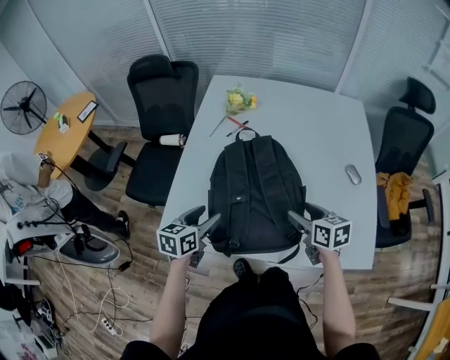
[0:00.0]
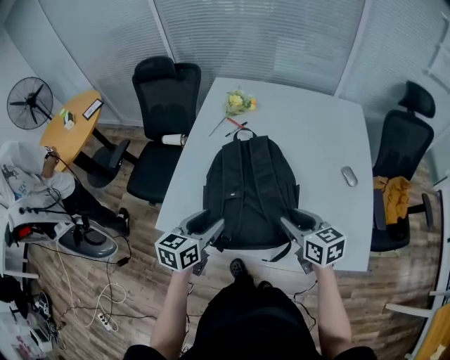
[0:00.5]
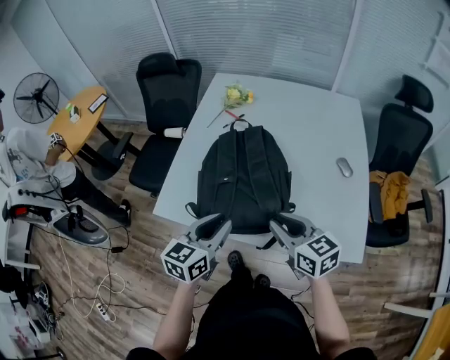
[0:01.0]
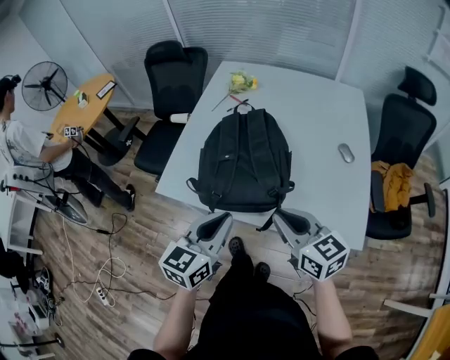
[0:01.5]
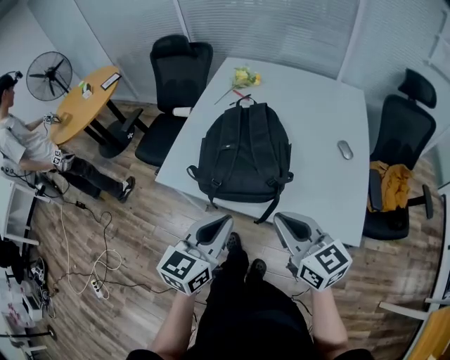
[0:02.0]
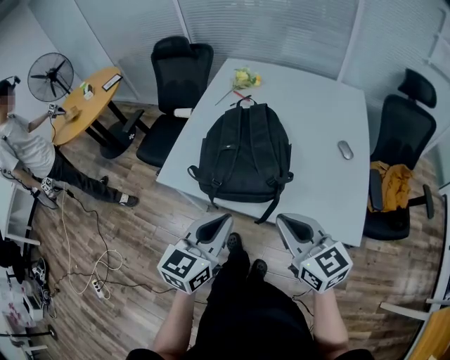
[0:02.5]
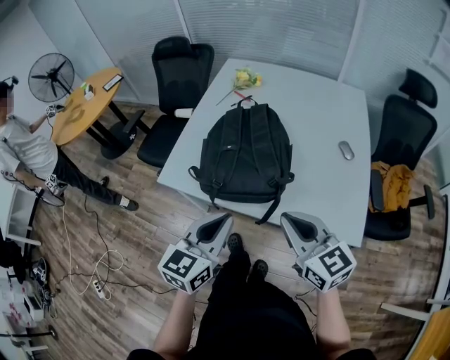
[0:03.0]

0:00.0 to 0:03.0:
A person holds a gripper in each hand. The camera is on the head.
0:00.0 to 0:01.5: The left gripper heads backward, upward and to the right, covering approximately 25 cm, swivels roughly 20 degrees, and closes its fingers. The right gripper moves backward and upward, some 20 cm, rotates roughly 30 degrees, and closes up.
0:01.5 to 0:03.0: The right gripper shifts about 5 cm backward.

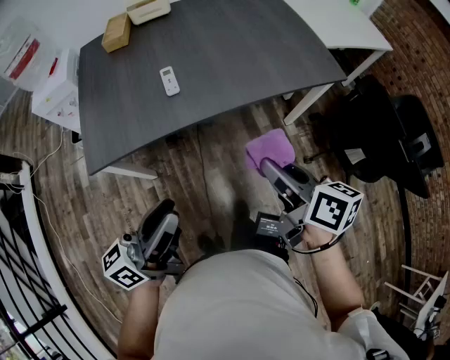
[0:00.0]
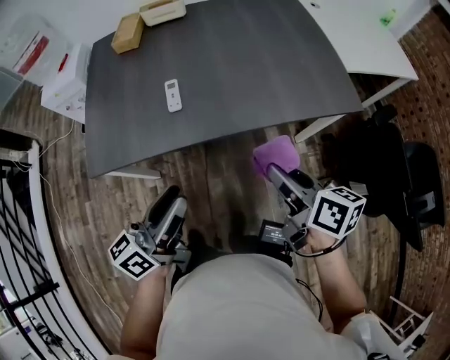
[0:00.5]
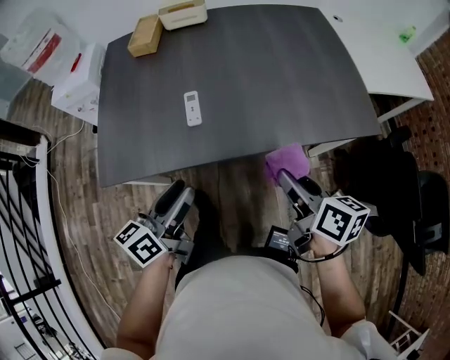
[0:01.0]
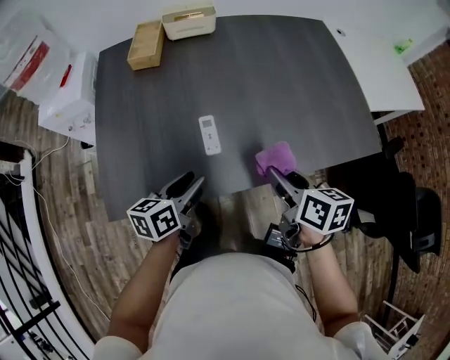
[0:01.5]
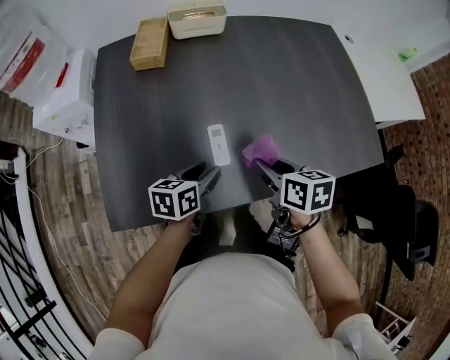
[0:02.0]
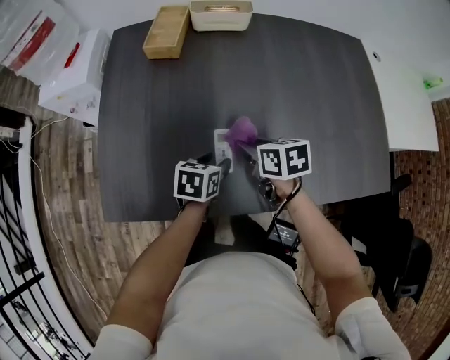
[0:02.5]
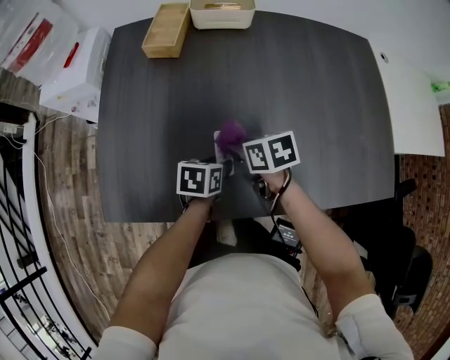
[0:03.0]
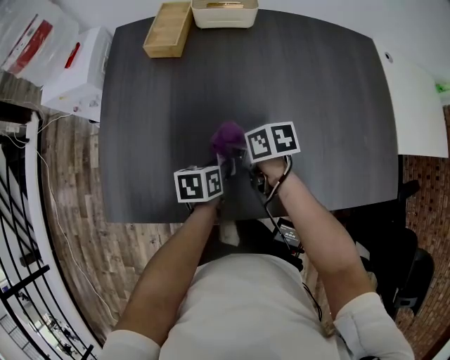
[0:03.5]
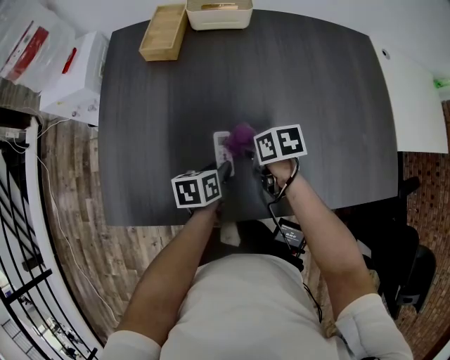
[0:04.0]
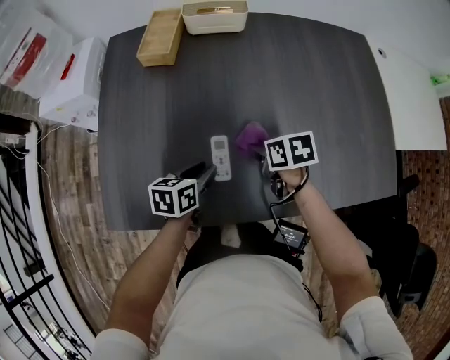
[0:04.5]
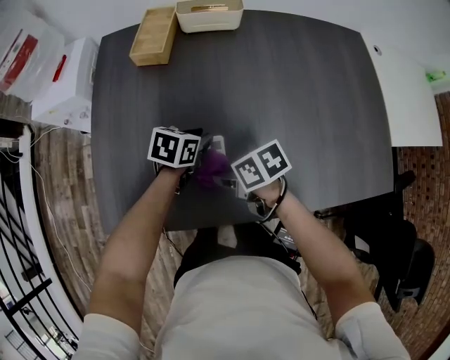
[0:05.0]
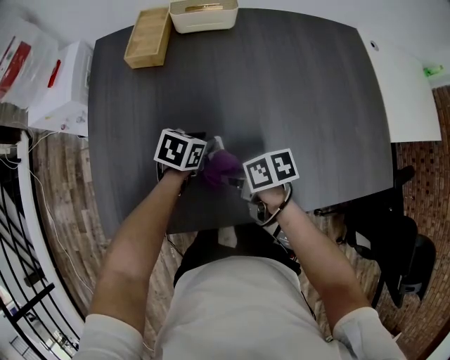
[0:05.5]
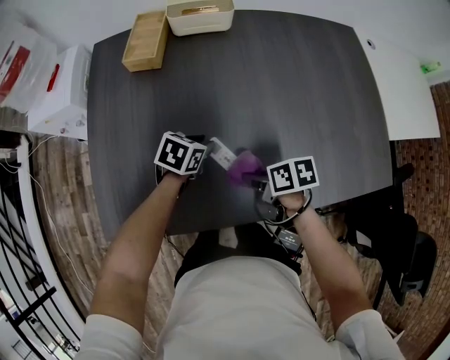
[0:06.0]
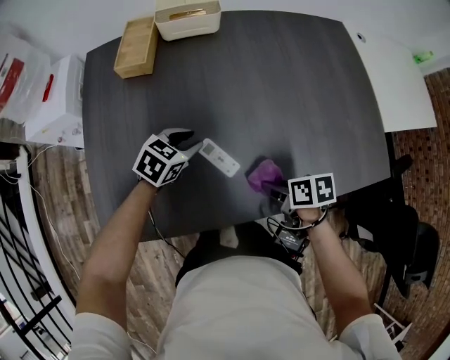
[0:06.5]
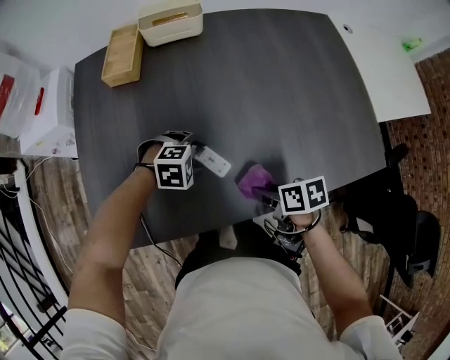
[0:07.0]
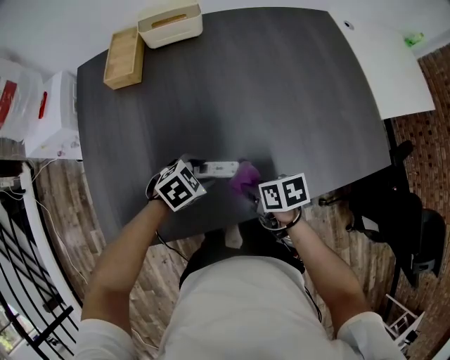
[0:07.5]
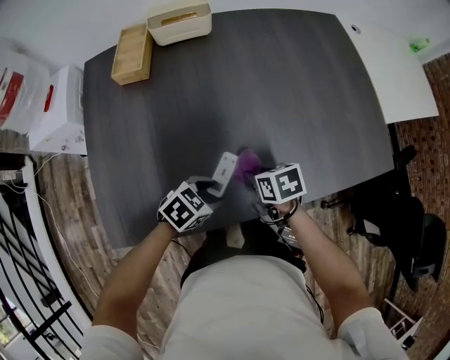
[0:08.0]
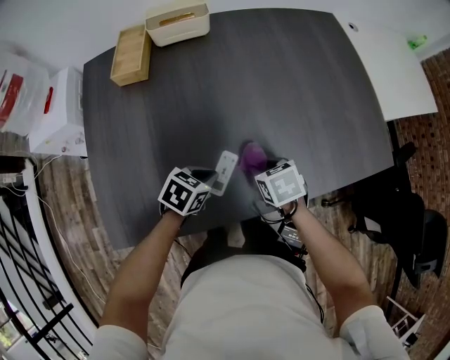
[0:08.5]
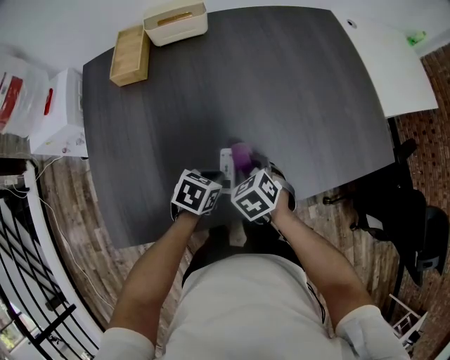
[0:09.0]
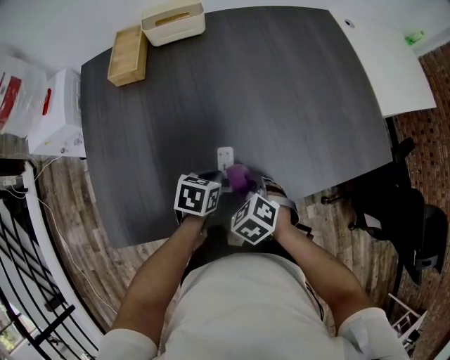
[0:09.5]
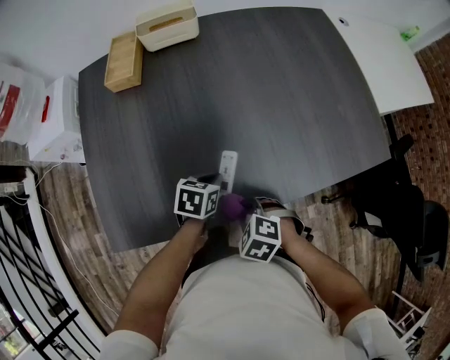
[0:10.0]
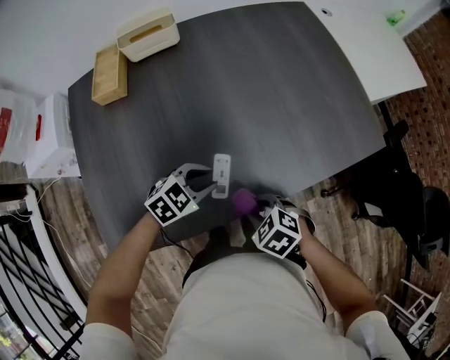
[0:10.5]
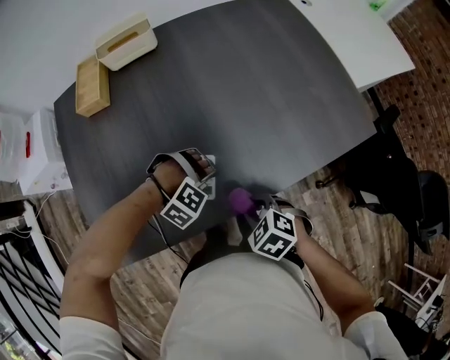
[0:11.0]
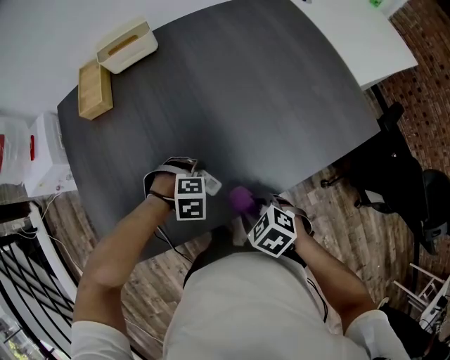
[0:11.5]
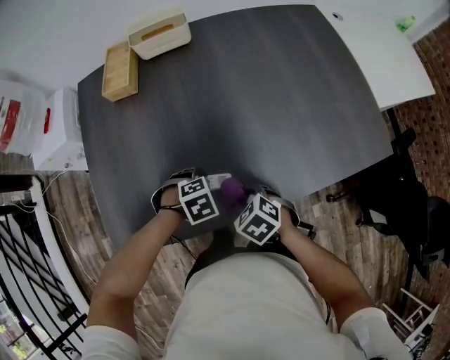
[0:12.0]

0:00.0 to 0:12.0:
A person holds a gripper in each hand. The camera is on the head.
0:00.0 to 0:02.0: The right gripper heads forward and to the left, covering approximately 30 cm, and swivels roughly 30 degrees; the left gripper shifts roughly 40 cm forward and downward, and tips its fingers downward by approximately 40 degrees.
0:02.0 to 0:04.0: The right gripper travels downward and forward by approximately 15 cm, and changes its angle by roughly 30 degrees. Meanwhile the left gripper travels downward by approximately 5 cm, and turns by about 20 degrees.
0:04.0 to 0:06.0: The left gripper shifts by some 10 cm, and changes its angle by approximately 40 degrees. Meanwhile the right gripper ends up roughly 10 cm from where it was.
0:06.0 to 0:08.0: The left gripper ends up approximately 15 cm from where it was, and turns by some 30 degrees.
0:08.0 to 0:10.0: The right gripper moves about 15 cm, and twists about 50 degrees counterclockwise, seen from behind. Meanwhile the left gripper swivels approximately 30 degrees, and closes.
0:10.0 to 0:12.0: The left gripper twists about 60 degrees clockwise, seen from behind, and opens its fingers, while the right gripper ends up about 5 cm from where it was.

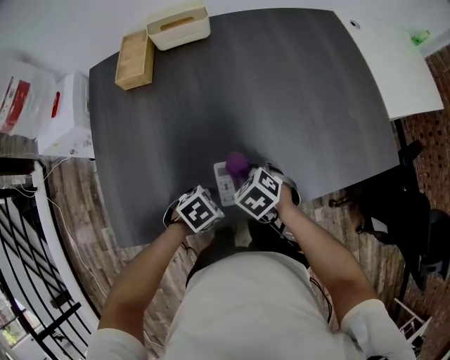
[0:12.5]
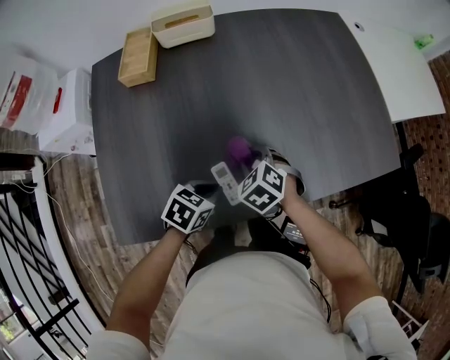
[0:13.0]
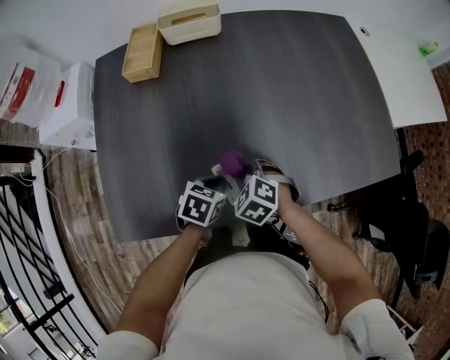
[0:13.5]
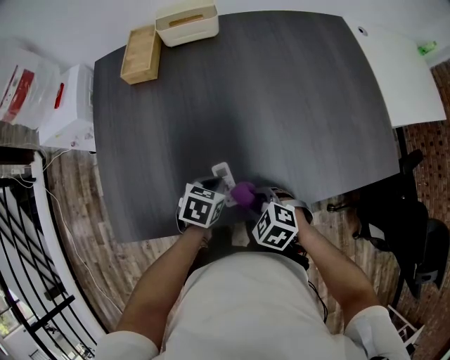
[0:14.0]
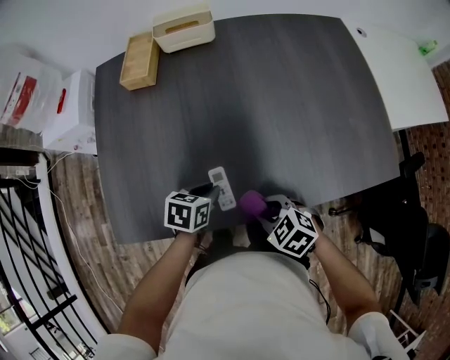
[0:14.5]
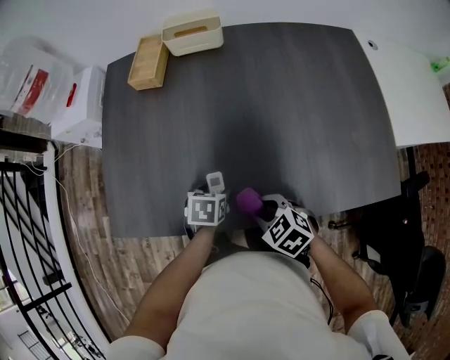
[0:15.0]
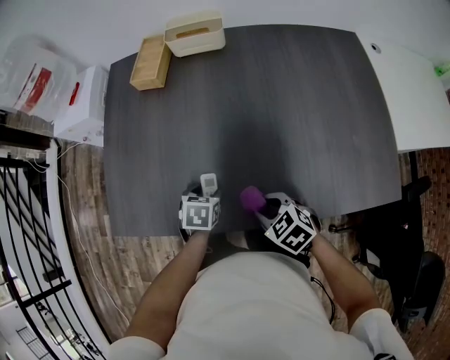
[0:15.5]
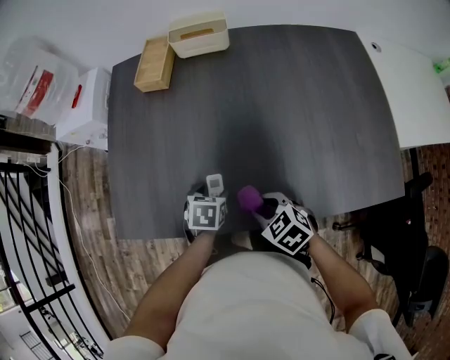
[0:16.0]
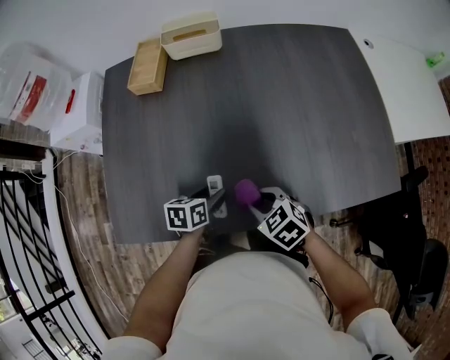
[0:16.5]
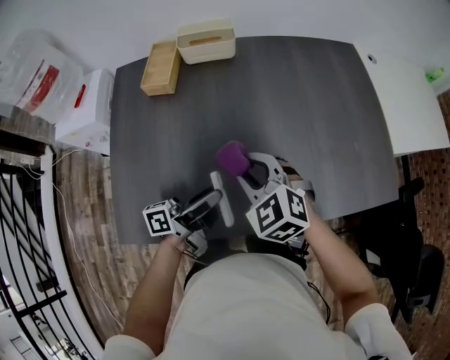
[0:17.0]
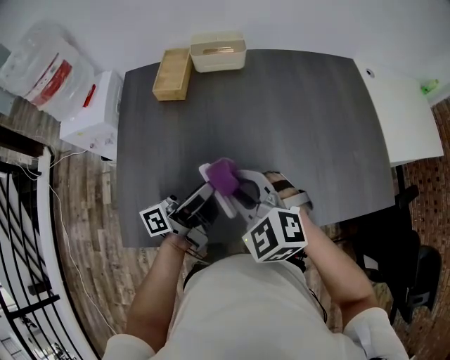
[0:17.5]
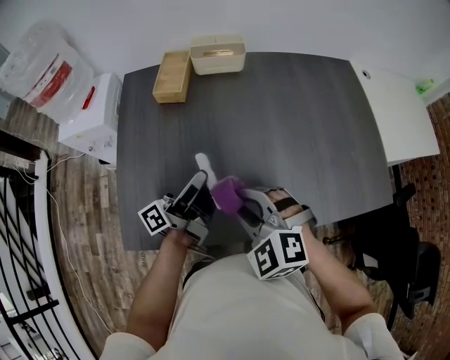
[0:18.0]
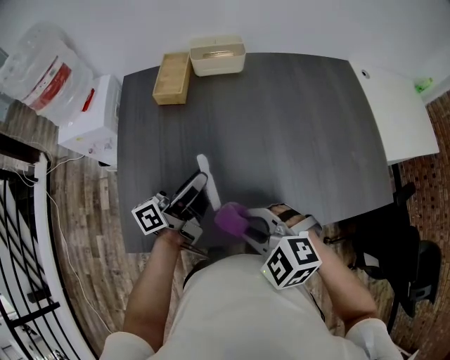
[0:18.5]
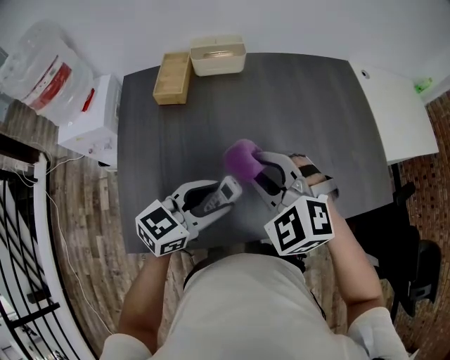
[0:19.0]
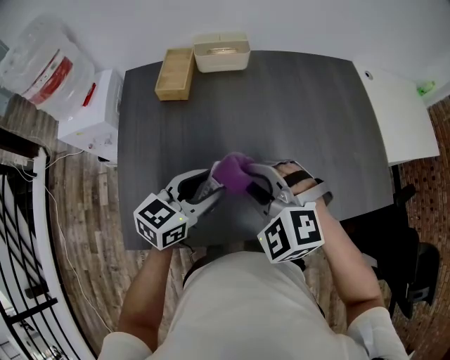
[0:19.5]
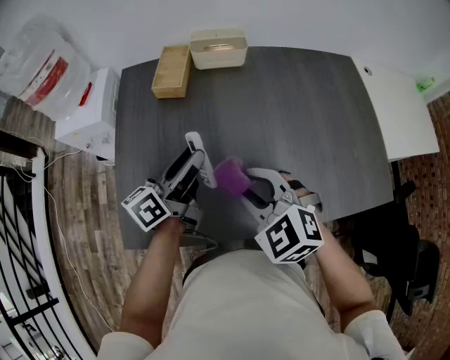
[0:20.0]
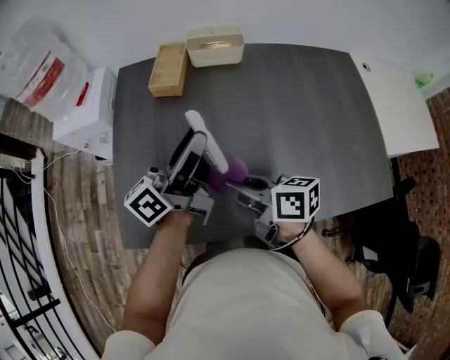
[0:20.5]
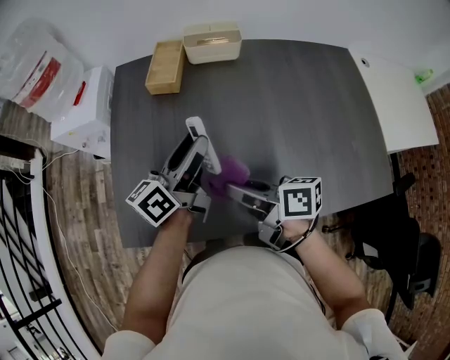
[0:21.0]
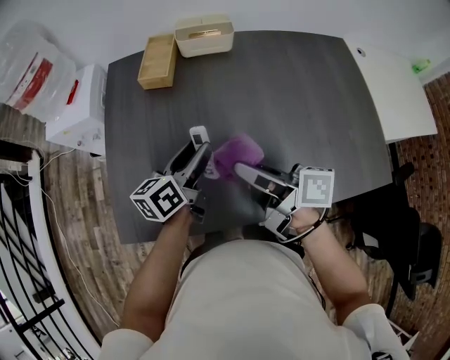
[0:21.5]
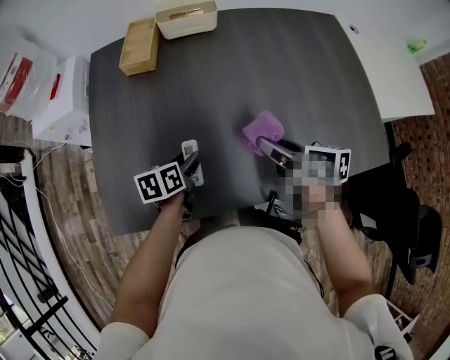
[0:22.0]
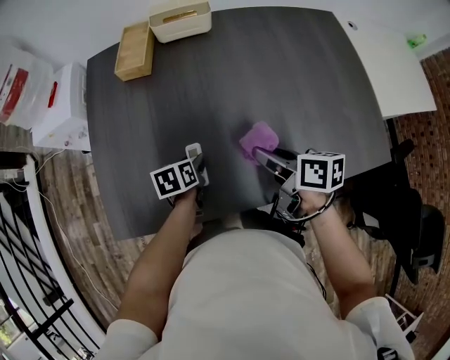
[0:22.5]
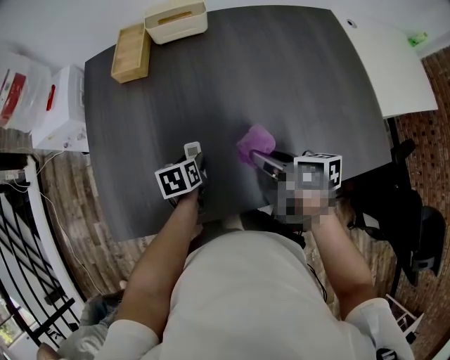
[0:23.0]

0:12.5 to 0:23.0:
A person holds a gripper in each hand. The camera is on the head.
0:12.5 to 0:14.5: The right gripper ends up some 10 cm from where it was. Meanwhile the left gripper ends up about 5 cm from where it was, rotates some 50 degrees, and closes.
0:14.5 to 0:16.5: The right gripper heads forward, covering about 5 cm. The left gripper opens up.
0:16.5 to 0:19.0: The right gripper shifts approximately 25 cm upward and to the left, and rotates roughly 50 degrees, while the left gripper shifts roughly 20 cm upward, and tilts its fingers roughly 30 degrees upward.
0:19.0 to 0:21.0: The right gripper travels downward by approximately 10 cm, and twists approximately 100 degrees clockwise, seen from behind; the left gripper reaches about 10 cm upward, then returns, and swivels roughly 50 degrees.
0:21.0 to 0:23.0: The right gripper shifts about 15 cm to the right and downward, and swivels approximately 20 degrees. Meanwhile the left gripper goes approximately 25 cm downward, and points its fingers about 60 degrees further downward.
